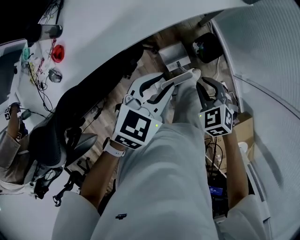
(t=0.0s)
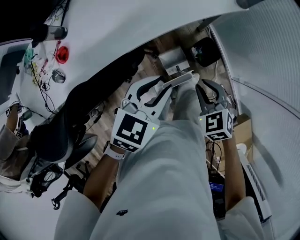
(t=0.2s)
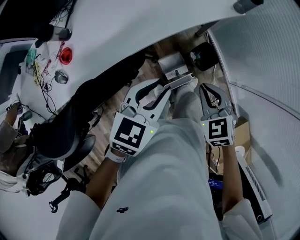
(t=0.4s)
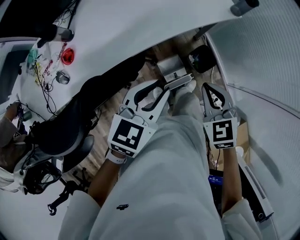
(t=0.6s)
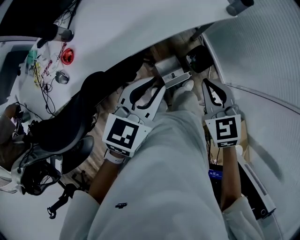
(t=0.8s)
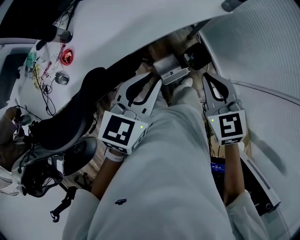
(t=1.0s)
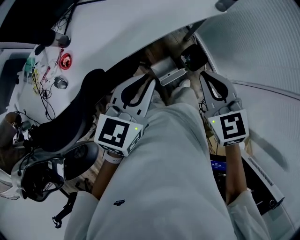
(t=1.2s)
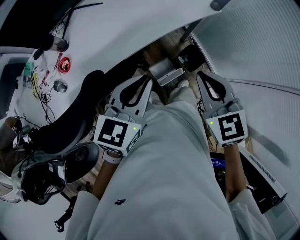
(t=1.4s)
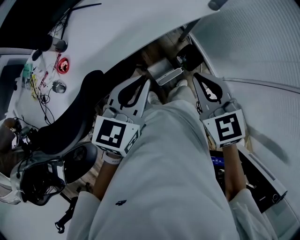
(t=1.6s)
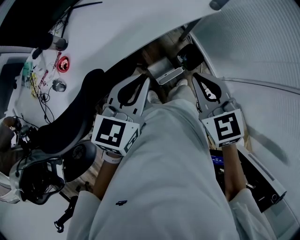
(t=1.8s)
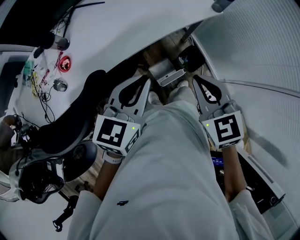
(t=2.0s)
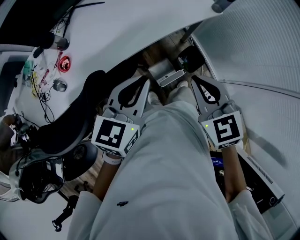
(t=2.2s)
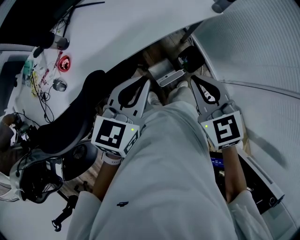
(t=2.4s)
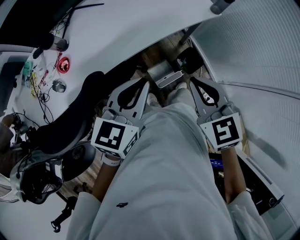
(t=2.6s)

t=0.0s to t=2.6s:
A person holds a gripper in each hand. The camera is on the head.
t=0.0s to t=1.2s: The right gripper heads upward, covering roughly 25 cm, and rotates roughly 30 degrees, while the left gripper is displaced upward and to the left by about 15 cm, and swivels approximately 20 degrees.
t=1.2s to t=2.6s: The grippers make only small movements.

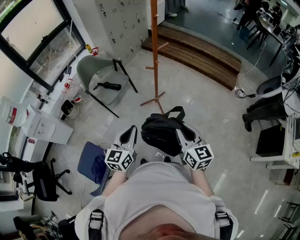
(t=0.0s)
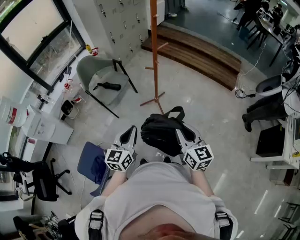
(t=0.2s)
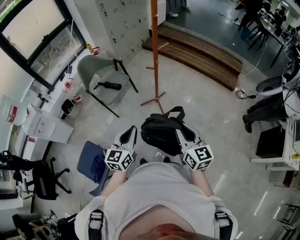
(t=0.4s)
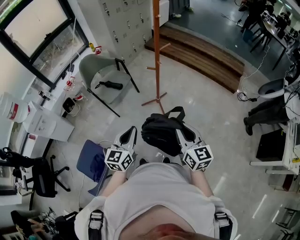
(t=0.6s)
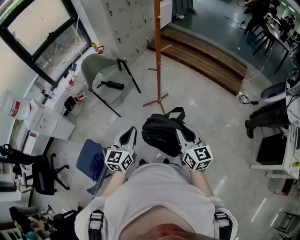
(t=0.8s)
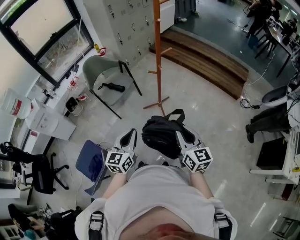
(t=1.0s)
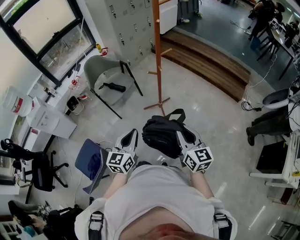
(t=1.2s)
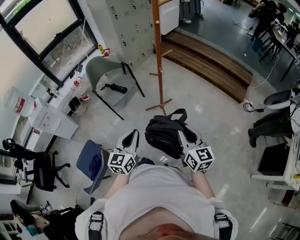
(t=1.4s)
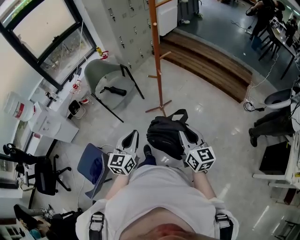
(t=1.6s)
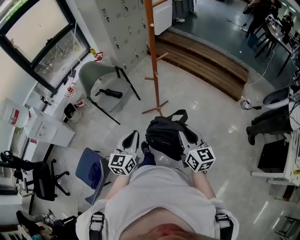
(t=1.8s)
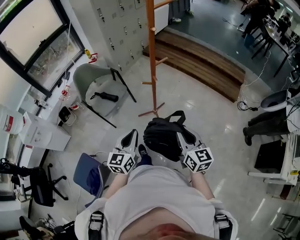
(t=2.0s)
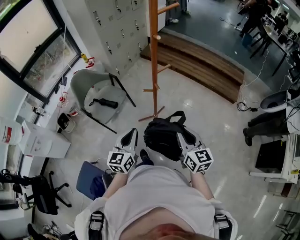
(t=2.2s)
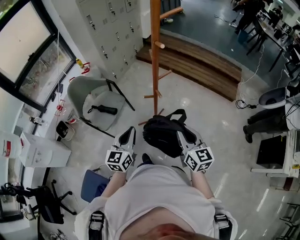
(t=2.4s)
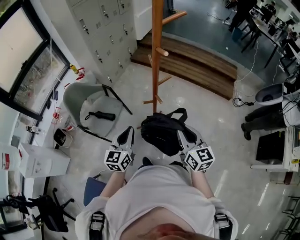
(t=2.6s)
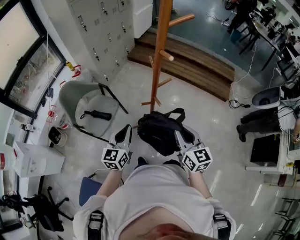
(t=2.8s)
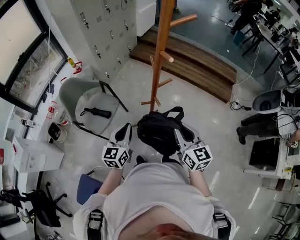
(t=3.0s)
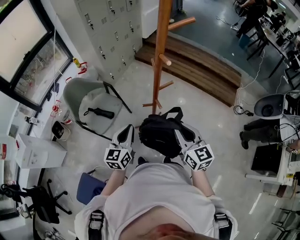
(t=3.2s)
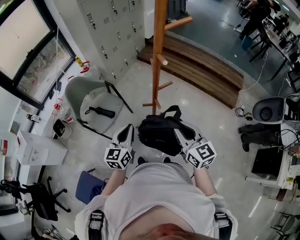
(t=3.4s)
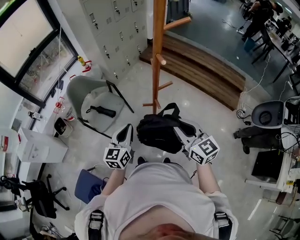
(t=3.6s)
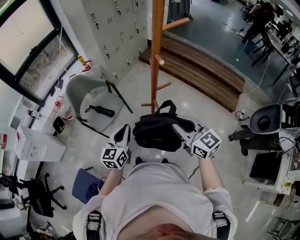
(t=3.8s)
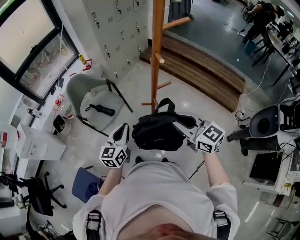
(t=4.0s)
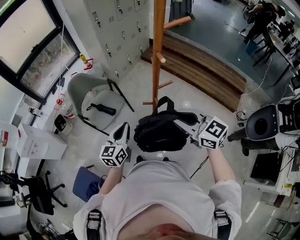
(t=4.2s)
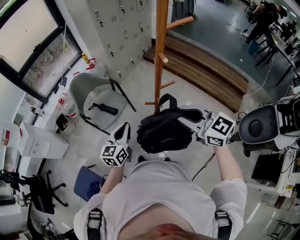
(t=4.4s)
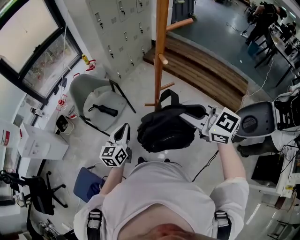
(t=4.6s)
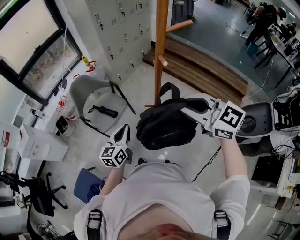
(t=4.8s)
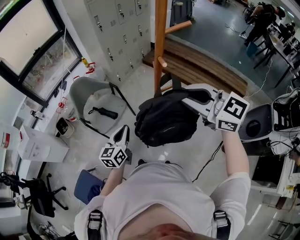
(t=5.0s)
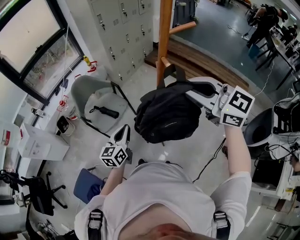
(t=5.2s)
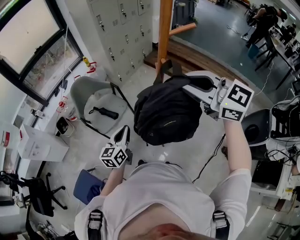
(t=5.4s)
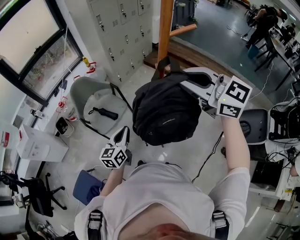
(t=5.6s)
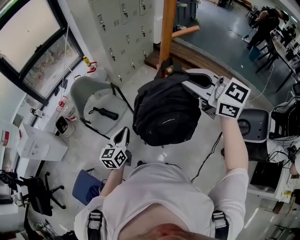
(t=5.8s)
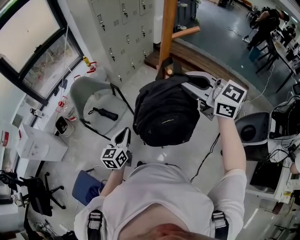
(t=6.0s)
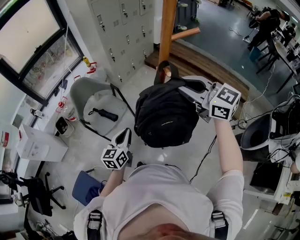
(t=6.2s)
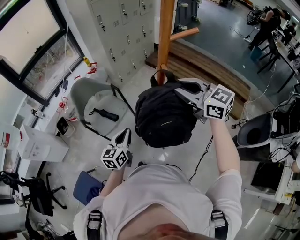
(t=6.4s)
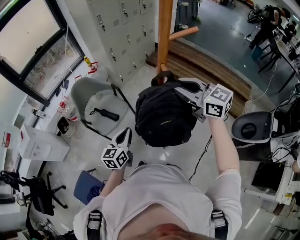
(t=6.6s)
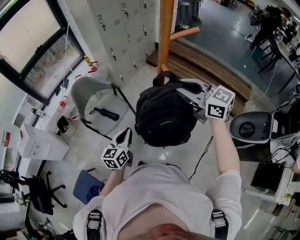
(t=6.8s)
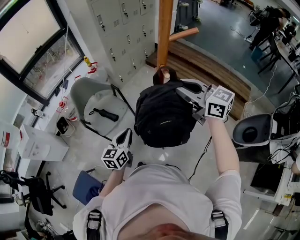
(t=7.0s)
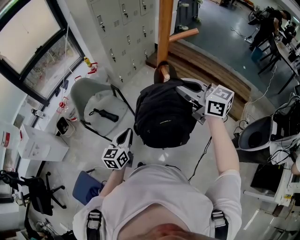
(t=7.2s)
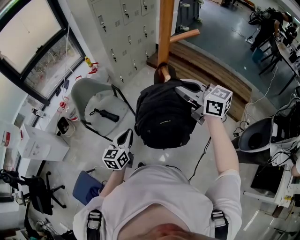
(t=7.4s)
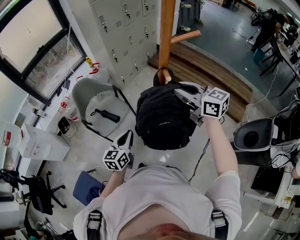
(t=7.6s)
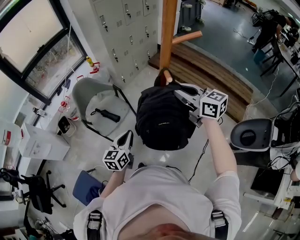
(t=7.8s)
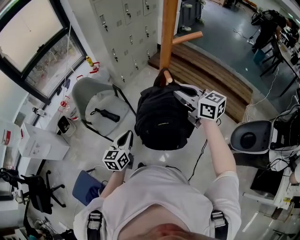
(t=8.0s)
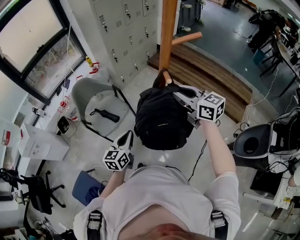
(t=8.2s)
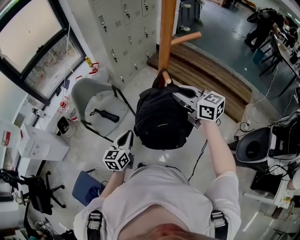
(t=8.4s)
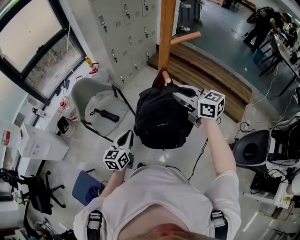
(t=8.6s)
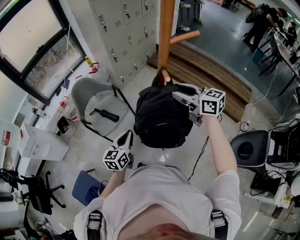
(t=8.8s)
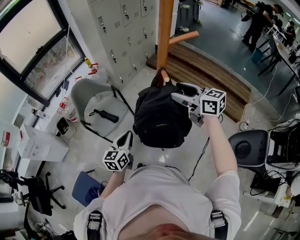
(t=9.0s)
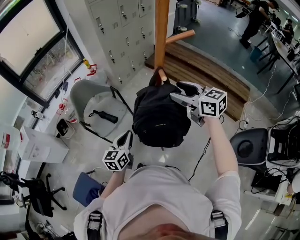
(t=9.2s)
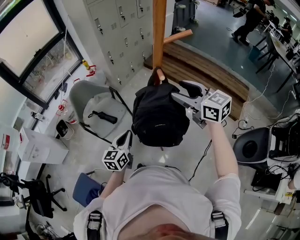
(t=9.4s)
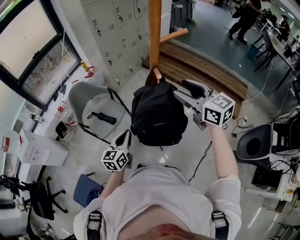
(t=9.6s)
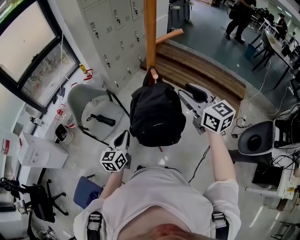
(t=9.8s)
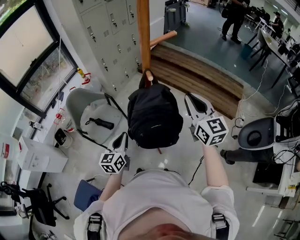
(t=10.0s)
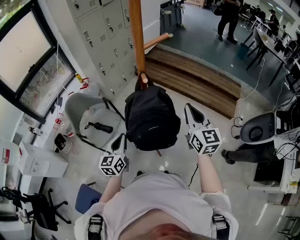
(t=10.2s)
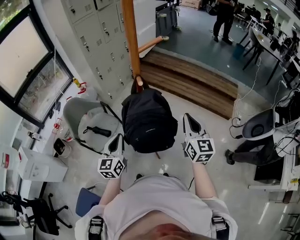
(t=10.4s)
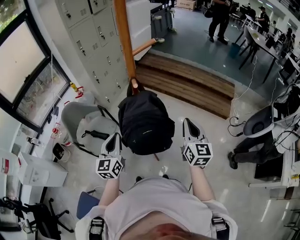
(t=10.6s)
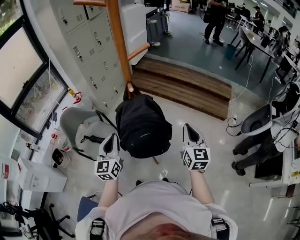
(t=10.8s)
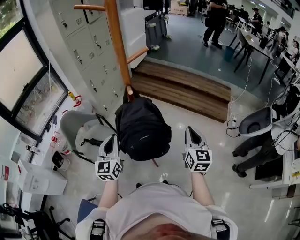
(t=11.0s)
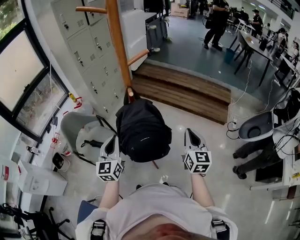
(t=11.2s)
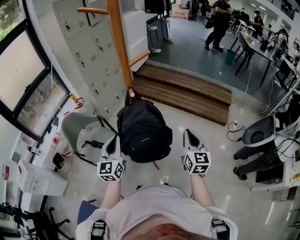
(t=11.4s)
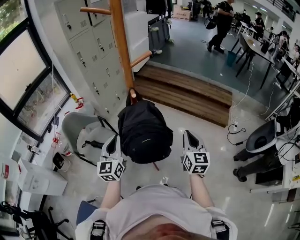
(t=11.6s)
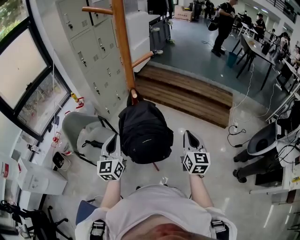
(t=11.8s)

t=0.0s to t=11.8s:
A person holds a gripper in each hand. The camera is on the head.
t=0.0s to t=1.4s: Both grippers move to the right, some 5 cm.
t=1.4s to t=3.0s: Both grippers travel together forward, some 30 cm.
t=3.0s to t=4.4s: The right gripper goes some 10 cm upward, and turns by about 40 degrees.
t=4.4s to t=6.0s: The right gripper goes roughly 15 cm forward and upward.
t=6.0s to t=7.4s: The right gripper shifts some 5 cm downward.
t=7.4s to t=8.8s: The right gripper changes place by approximately 5 cm.
t=8.8s to t=10.4s: The right gripper shifts by about 20 cm, turns by approximately 50 degrees, and closes up, while the left gripper goes approximately 5 cm upward.
t=10.4s to t=11.8s: The right gripper ends up about 5 cm from where it was. The left gripper travels upward by roughly 5 cm.

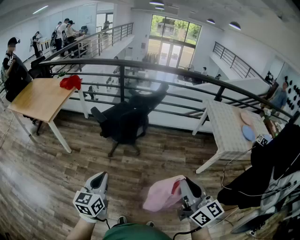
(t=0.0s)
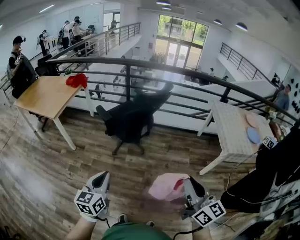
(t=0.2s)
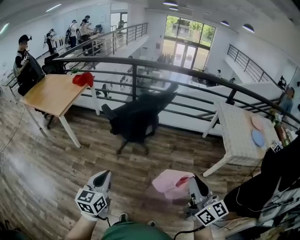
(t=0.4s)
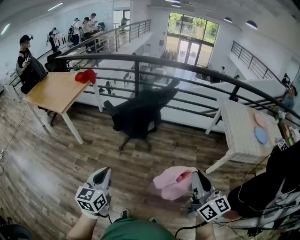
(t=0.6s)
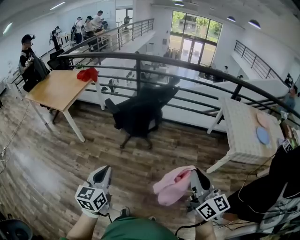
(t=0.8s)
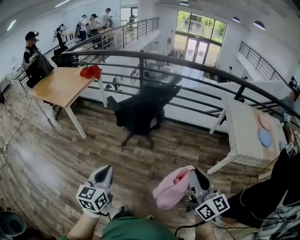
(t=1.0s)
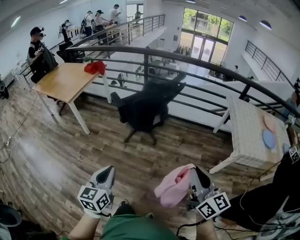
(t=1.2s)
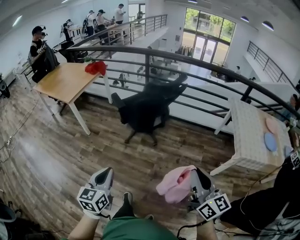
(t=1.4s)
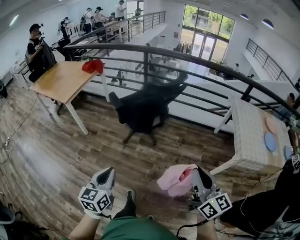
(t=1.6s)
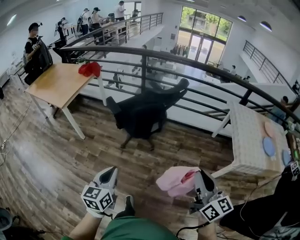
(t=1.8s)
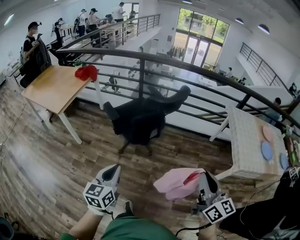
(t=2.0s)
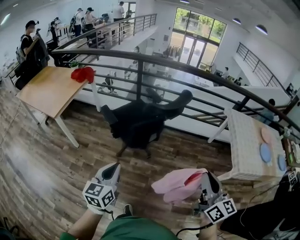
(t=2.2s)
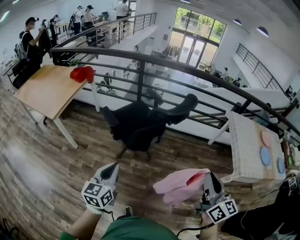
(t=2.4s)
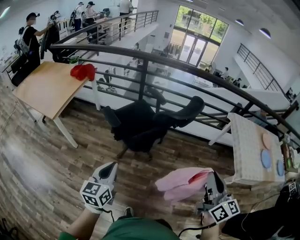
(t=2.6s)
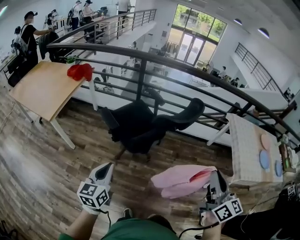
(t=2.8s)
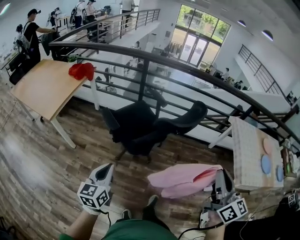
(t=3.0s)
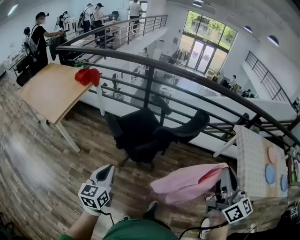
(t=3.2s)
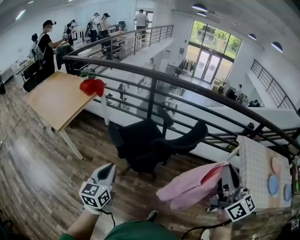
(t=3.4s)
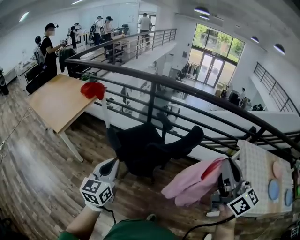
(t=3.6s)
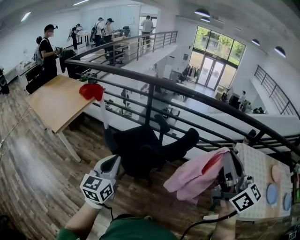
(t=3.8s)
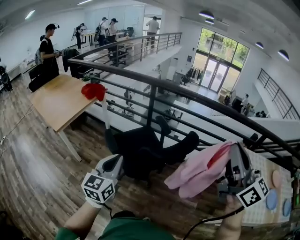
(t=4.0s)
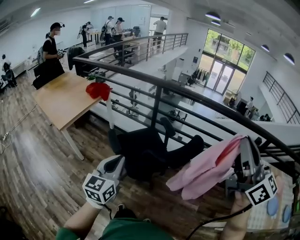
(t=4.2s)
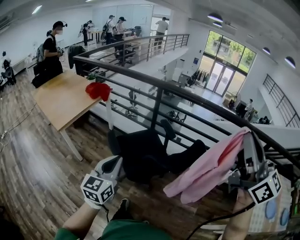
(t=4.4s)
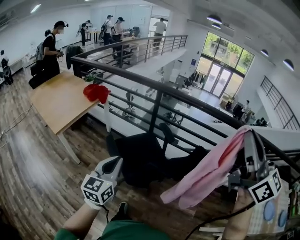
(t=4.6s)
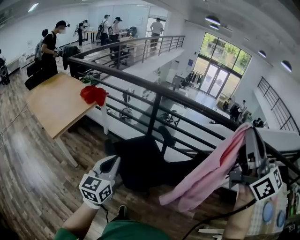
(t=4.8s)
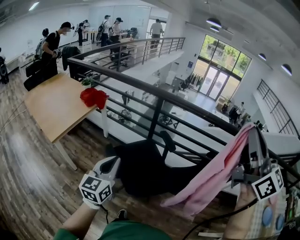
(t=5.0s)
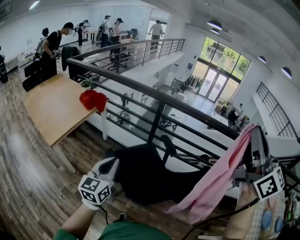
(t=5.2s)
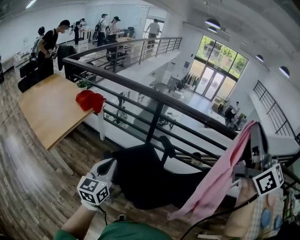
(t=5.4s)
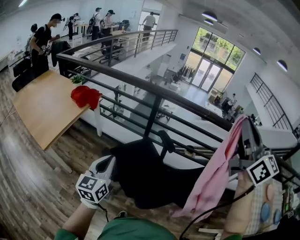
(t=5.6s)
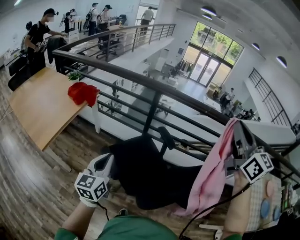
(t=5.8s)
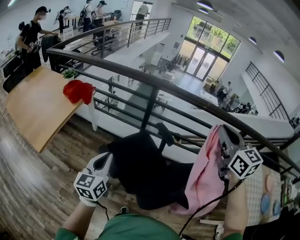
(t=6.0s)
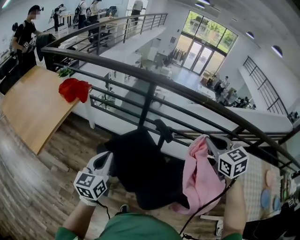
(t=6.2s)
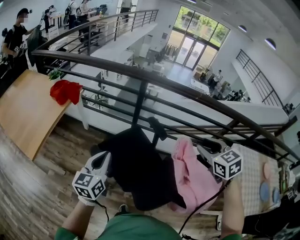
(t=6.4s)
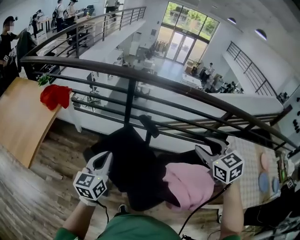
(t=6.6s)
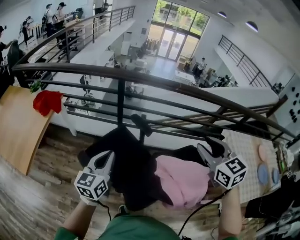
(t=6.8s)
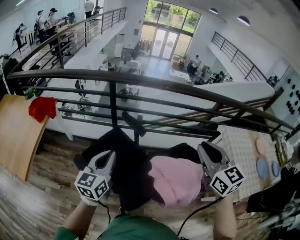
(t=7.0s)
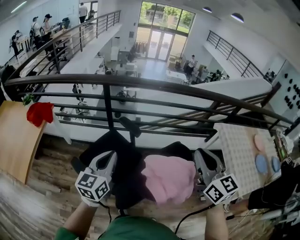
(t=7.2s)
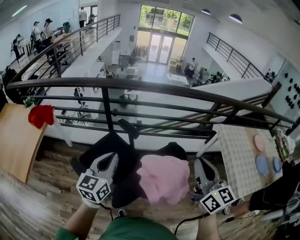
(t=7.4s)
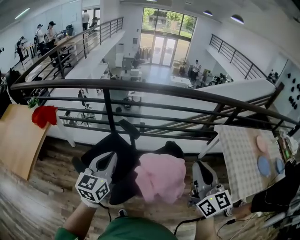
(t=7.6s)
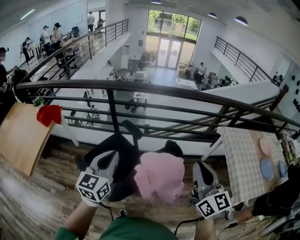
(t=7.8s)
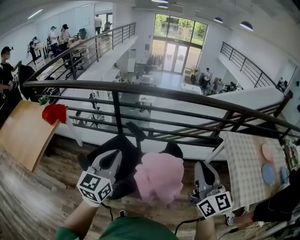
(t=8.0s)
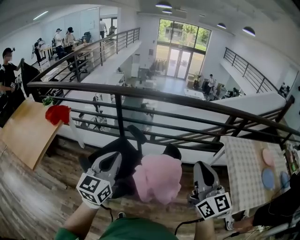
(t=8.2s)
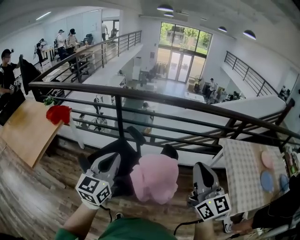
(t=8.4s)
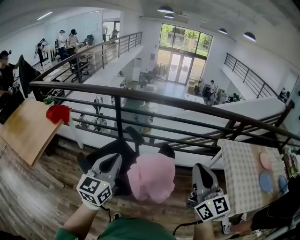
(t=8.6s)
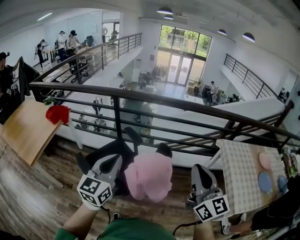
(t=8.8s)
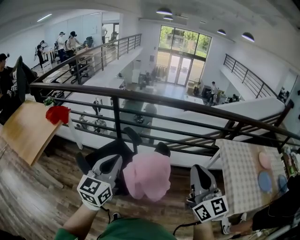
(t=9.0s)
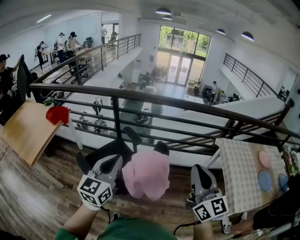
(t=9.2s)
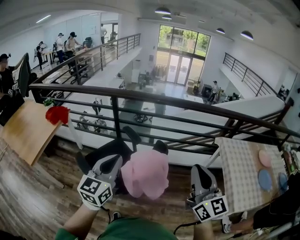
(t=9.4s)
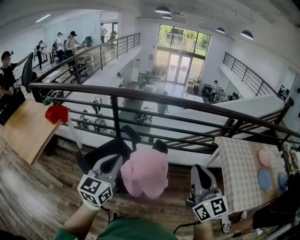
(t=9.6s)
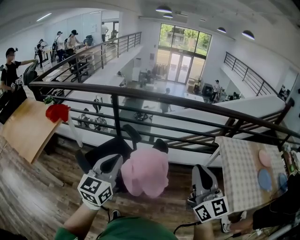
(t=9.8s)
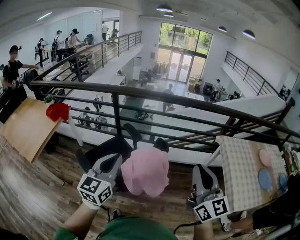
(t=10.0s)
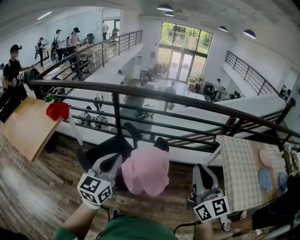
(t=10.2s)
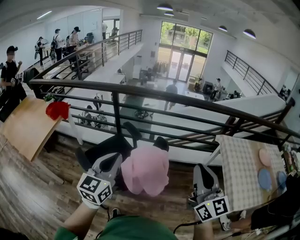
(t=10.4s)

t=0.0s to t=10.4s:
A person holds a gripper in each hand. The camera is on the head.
t=0.0s to t=1.4s: The two grippers go about 10 cm to the right.
t=1.4s to t=3.0s: The grippers both shift forward by roughly 35 cm.
t=3.0s to t=4.4s: The left gripper shifts approximately 25 cm forward, to the right and upward. Meanwhile the right gripper goes some 30 cm upward, forward and to the right, and swivels roughly 30 degrees.
t=4.4s to t=6.0s: The right gripper is displaced forward by approximately 35 cm, and rotates approximately 30 degrees, while the left gripper heads forward and to the left, covering about 30 cm.
t=6.0s to t=7.4s: The right gripper is displaced to the right and backward by approximately 25 cm, rotates roughly 30 degrees, and opens and closes again. Meanwhile the left gripper travels to the right by some 25 cm, and swivels some 20 degrees.
t=7.4s to t=9.0s: The right gripper shifts some 10 cm backward and to the right. Meanwhile the left gripper travels backward, to the right and upward by some 15 cm.
t=9.0s to t=10.4s: The grippers stay close to where they were, moving slightly.
